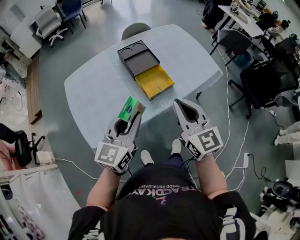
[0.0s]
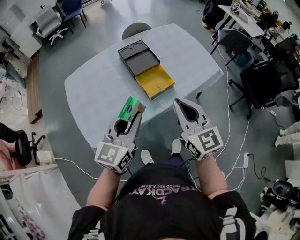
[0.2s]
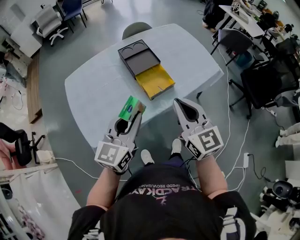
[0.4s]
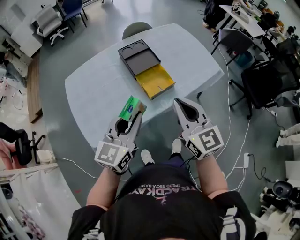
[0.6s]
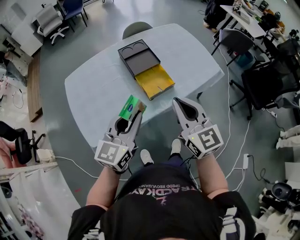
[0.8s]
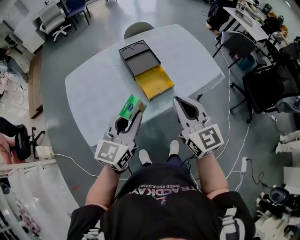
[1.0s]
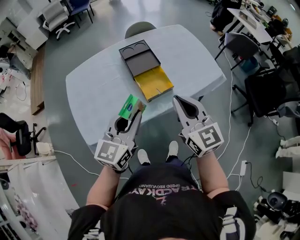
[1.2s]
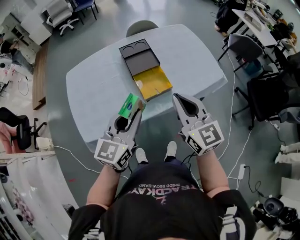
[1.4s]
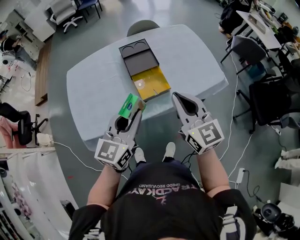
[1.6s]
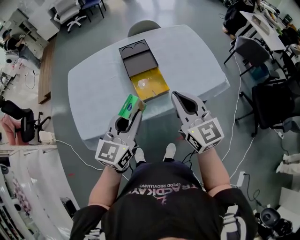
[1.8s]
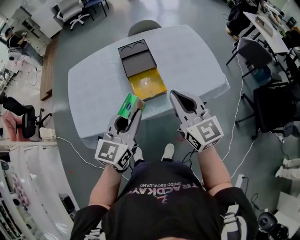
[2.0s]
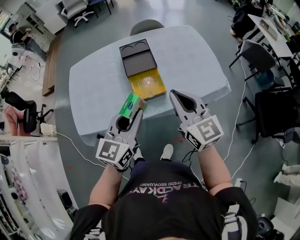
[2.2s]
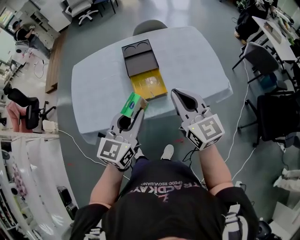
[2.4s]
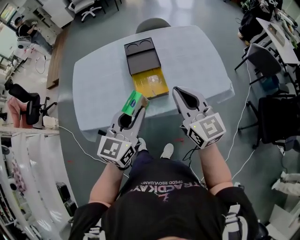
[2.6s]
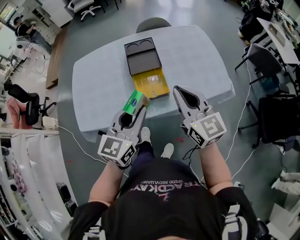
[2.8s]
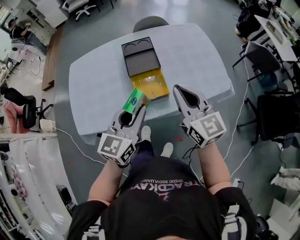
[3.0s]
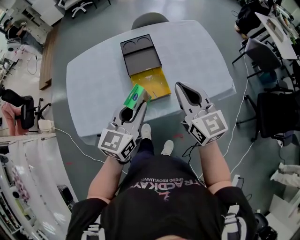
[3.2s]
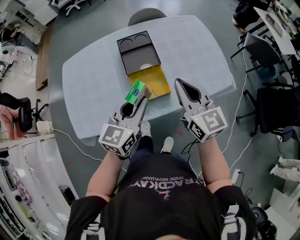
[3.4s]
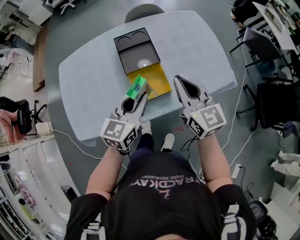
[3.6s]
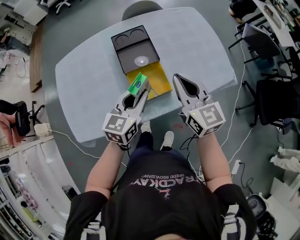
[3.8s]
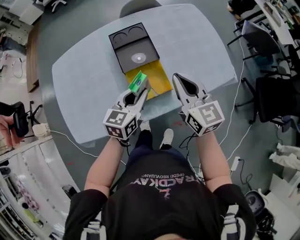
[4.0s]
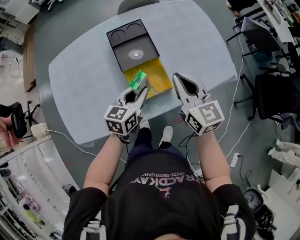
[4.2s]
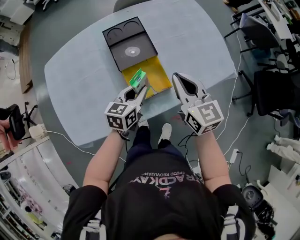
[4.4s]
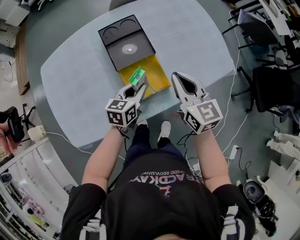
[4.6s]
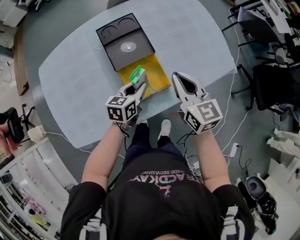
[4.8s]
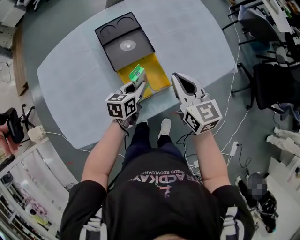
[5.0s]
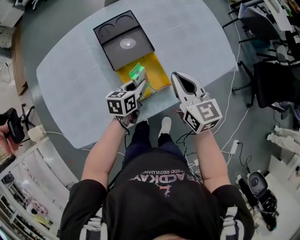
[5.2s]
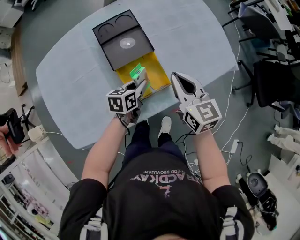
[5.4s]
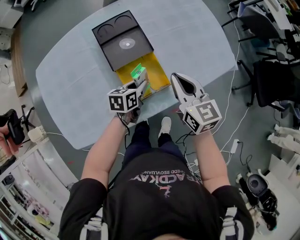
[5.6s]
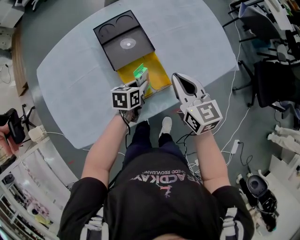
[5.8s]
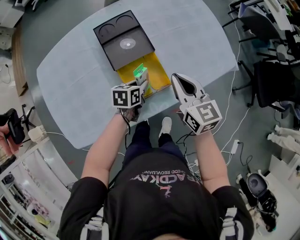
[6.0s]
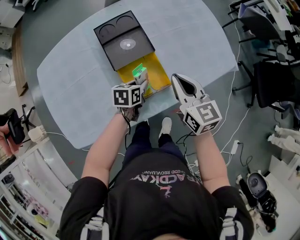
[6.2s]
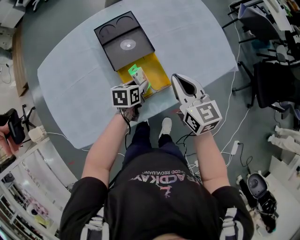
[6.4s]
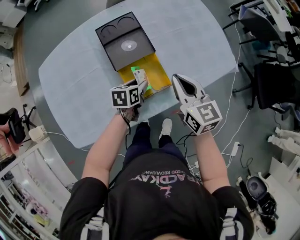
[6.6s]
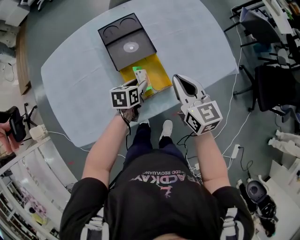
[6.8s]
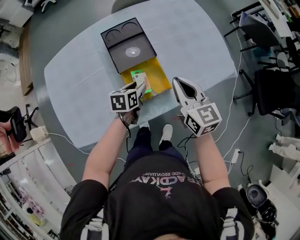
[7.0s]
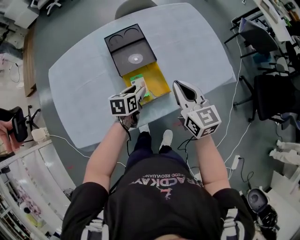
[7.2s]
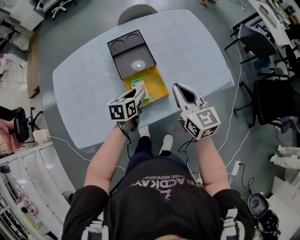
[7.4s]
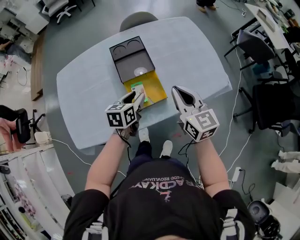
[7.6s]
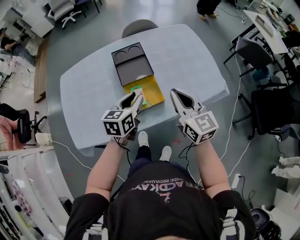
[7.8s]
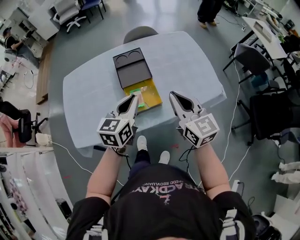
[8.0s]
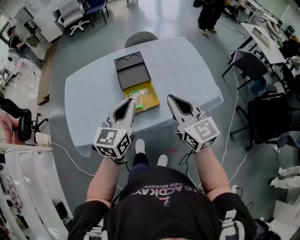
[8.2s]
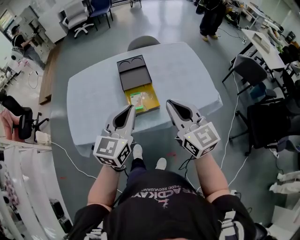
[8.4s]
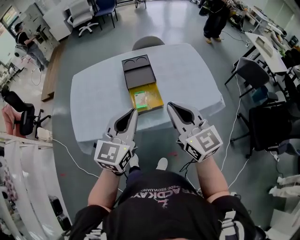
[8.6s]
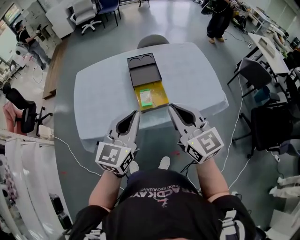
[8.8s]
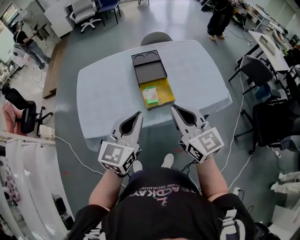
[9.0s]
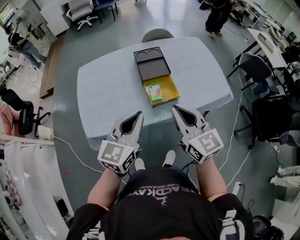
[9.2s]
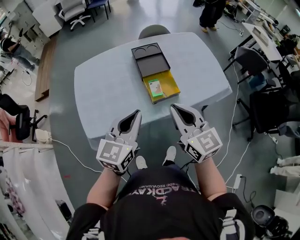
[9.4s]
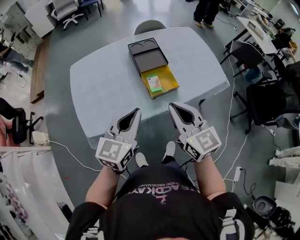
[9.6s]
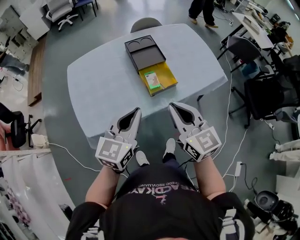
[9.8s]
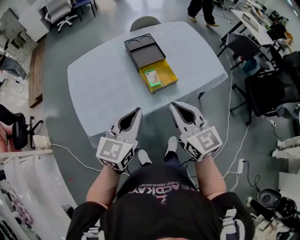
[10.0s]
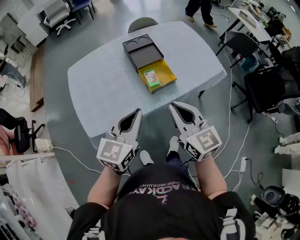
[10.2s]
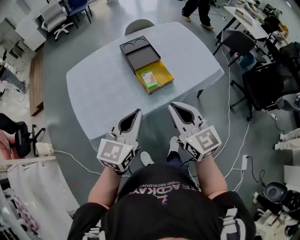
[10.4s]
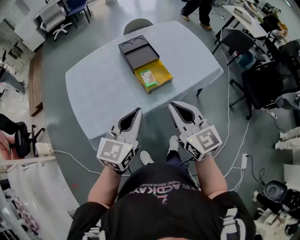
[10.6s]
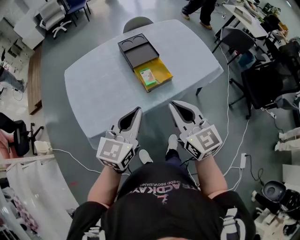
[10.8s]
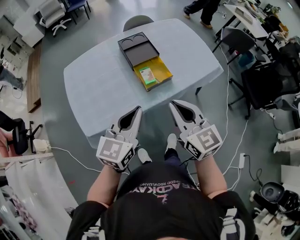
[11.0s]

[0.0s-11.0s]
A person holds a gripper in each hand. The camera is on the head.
0.0s to 1.6s: The left gripper goes about 10 cm to the right. Meanwhile the right gripper shifts some 10 cm to the right and forward.
1.6s to 3.2s: The two grippers go some 10 cm forward and to the right.
3.2s to 4.8s: The left gripper goes about 25 cm downward and forward, and rotates approximately 30 degrees. Meanwhile the right gripper is displaced downward and forward by approximately 15 cm.
4.8s to 6.2s: The left gripper is displaced downward by some 5 cm.
6.2s to 7.8s: The left gripper goes roughly 20 cm upward, and changes its angle by approximately 30 degrees. Meanwhile the right gripper goes some 10 cm upward and backward.
7.8s to 9.4s: The right gripper travels to the left and backward by roughly 25 cm. Meanwhile the left gripper moves backward, to the left and upward, approximately 25 cm, rotates about 20 degrees, and closes up.
9.4s to 11.0s: The right gripper travels backward by approximately 5 cm.

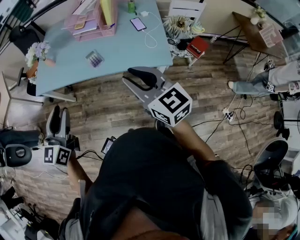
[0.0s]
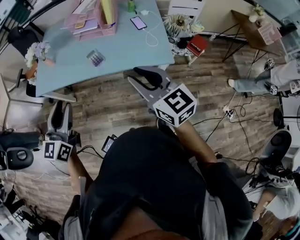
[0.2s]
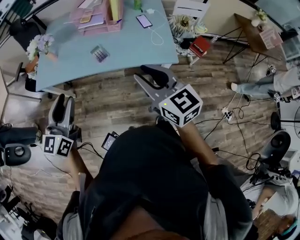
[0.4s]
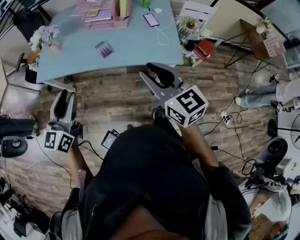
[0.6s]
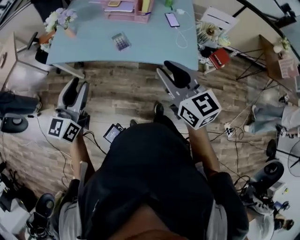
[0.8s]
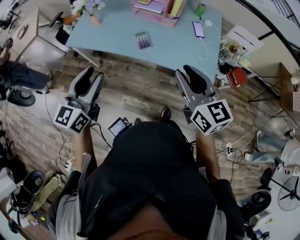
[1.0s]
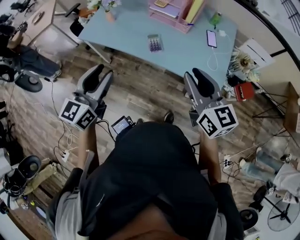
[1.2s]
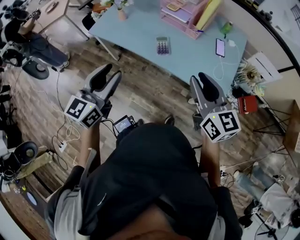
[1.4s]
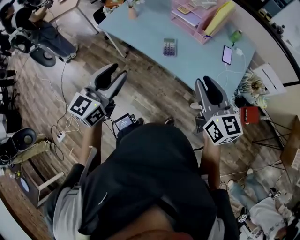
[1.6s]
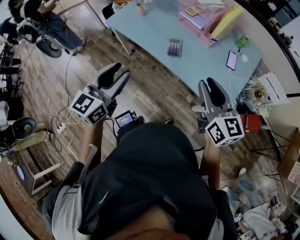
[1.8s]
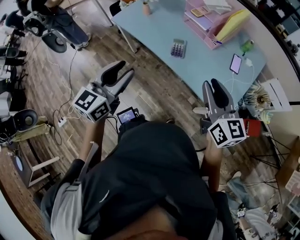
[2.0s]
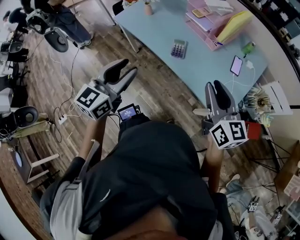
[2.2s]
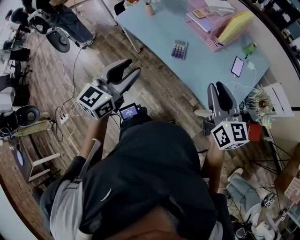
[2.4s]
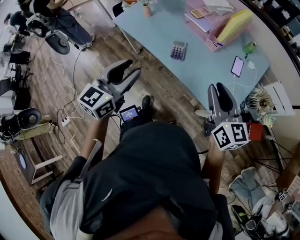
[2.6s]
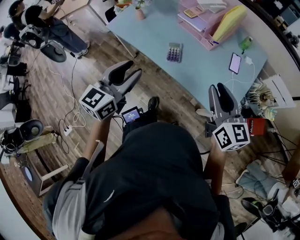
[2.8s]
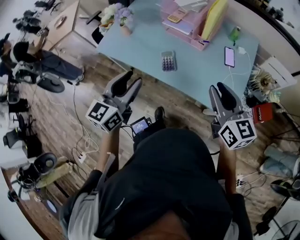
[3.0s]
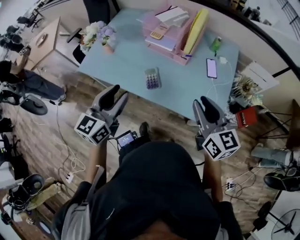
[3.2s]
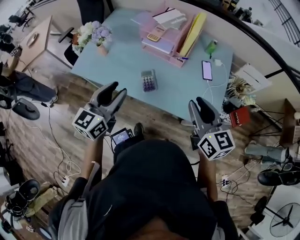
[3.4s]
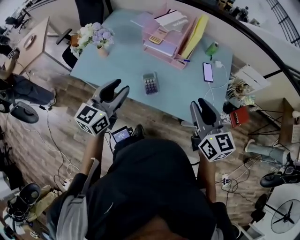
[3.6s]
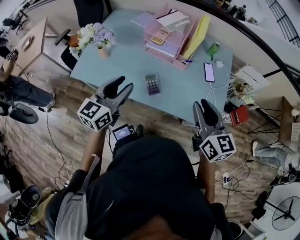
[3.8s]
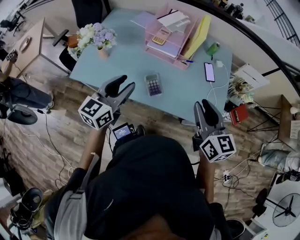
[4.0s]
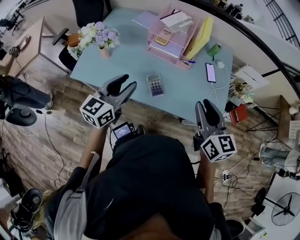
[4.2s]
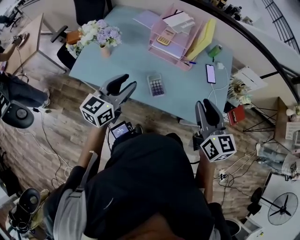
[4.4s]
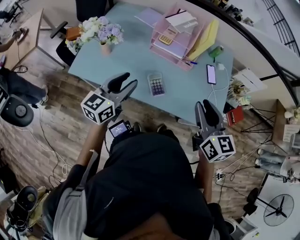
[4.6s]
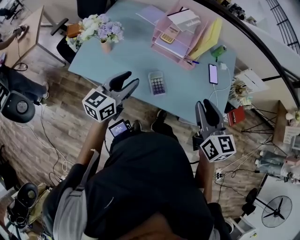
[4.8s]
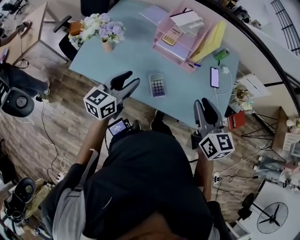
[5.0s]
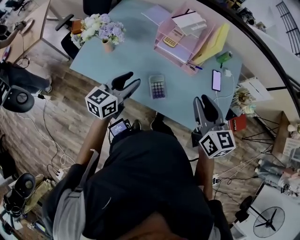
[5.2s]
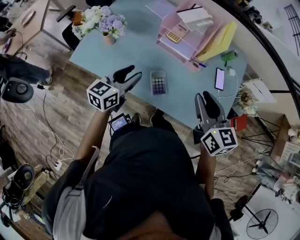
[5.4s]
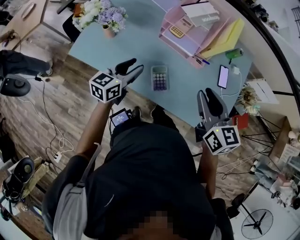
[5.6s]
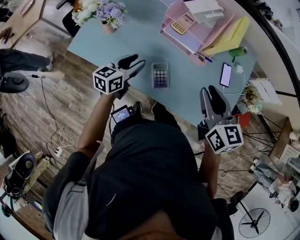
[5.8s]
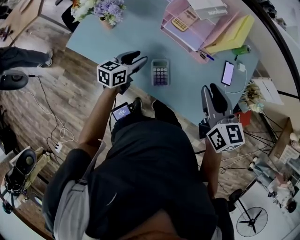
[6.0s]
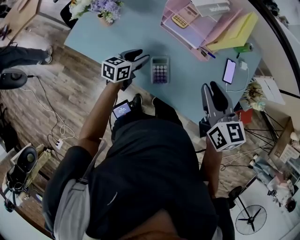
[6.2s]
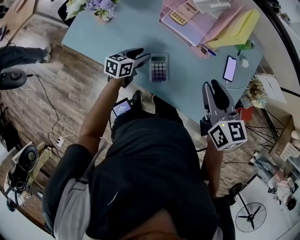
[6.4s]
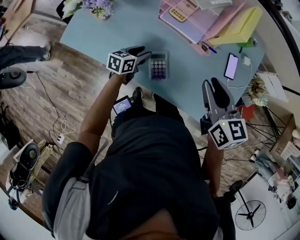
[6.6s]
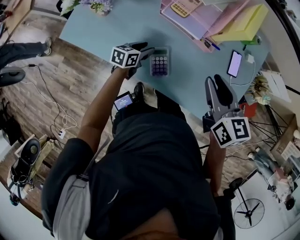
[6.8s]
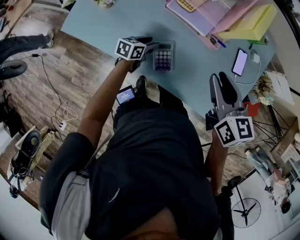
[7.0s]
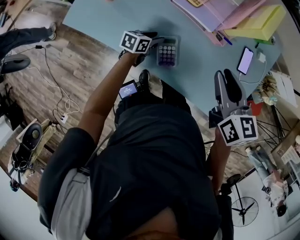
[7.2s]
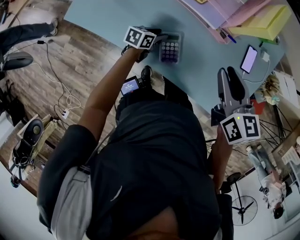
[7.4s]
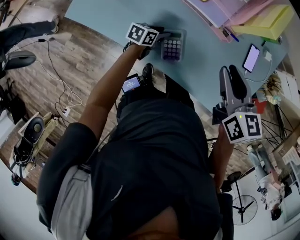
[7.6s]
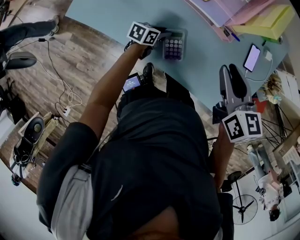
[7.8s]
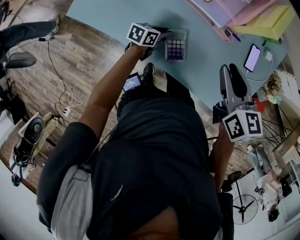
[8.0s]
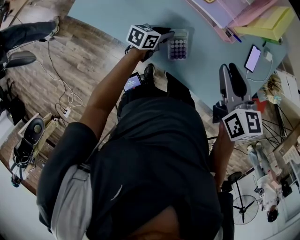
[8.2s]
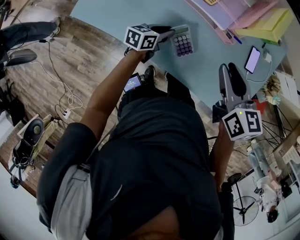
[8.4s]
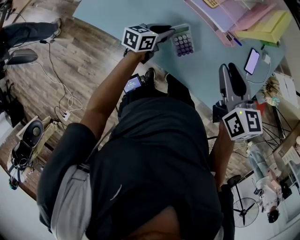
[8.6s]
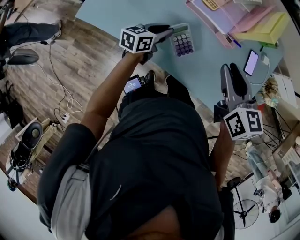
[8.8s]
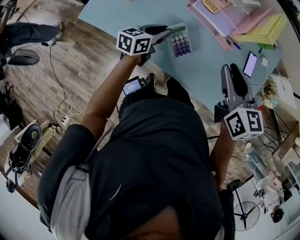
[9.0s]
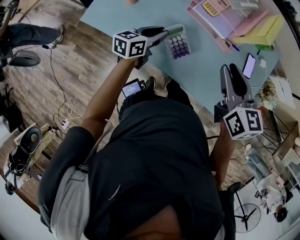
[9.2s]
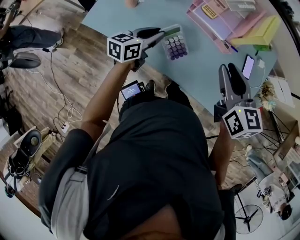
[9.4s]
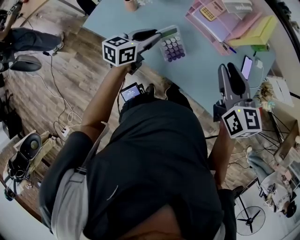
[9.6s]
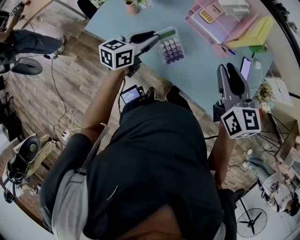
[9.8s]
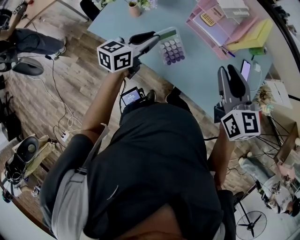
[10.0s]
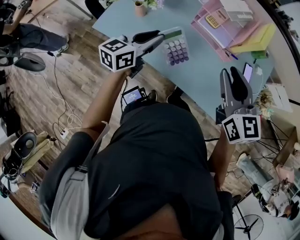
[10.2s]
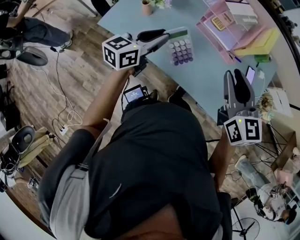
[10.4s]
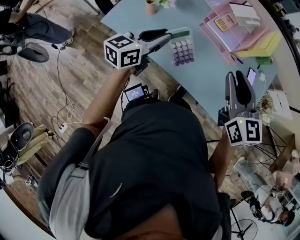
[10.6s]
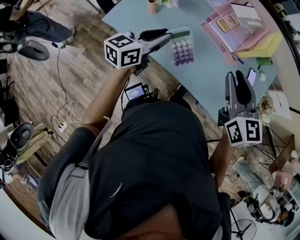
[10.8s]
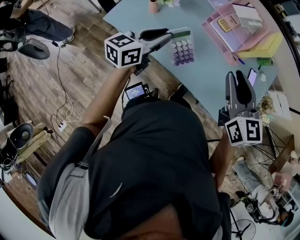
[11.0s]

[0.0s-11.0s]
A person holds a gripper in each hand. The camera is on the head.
0.0s to 1.6s: The right gripper shifts roughly 10 cm forward.
1.6s to 3.2s: The right gripper travels forward by roughly 10 cm. The left gripper shifts roughly 15 cm forward.
3.2s to 4.8s: The right gripper goes approximately 15 cm to the left and forward. The left gripper shifts about 20 cm forward, to the left and downward.
4.8s to 6.2s: The left gripper goes roughly 25 cm downward and forward, and swivels some 30 degrees. The right gripper is displaced forward and downward by some 15 cm.
6.2s to 7.8s: The right gripper changes place by some 5 cm. Meanwhile the left gripper goes about 15 cm downward, and turns by approximately 20 degrees.
7.8s to 9.4s: The right gripper travels to the left and upward by roughly 10 cm. Meanwhile the left gripper travels upward and to the left by roughly 25 cm, and changes its angle by some 30 degrees.
9.4s to 11.0s: The right gripper is displaced backward, upward and to the left by about 10 cm. Meanwhile the left gripper travels upward, backward and to the left by some 15 cm.

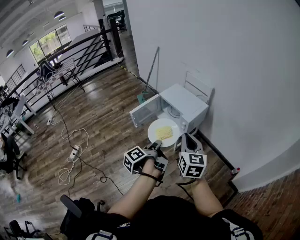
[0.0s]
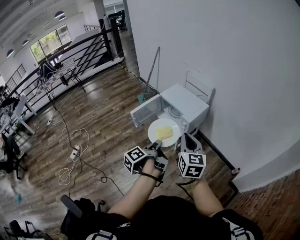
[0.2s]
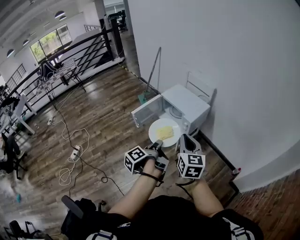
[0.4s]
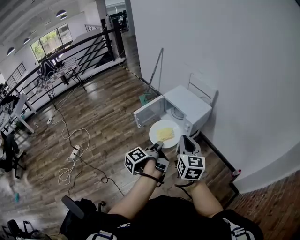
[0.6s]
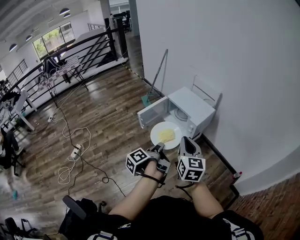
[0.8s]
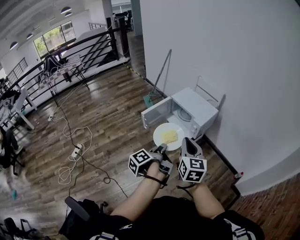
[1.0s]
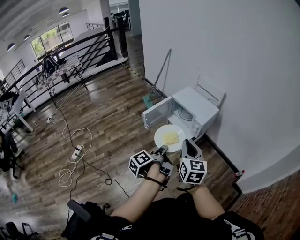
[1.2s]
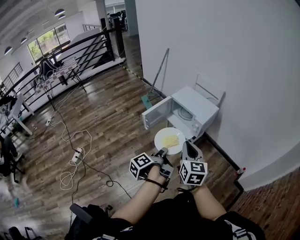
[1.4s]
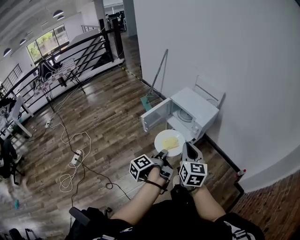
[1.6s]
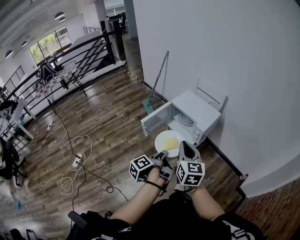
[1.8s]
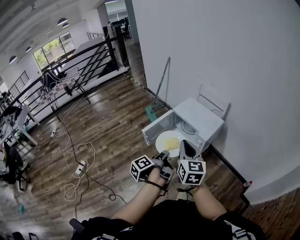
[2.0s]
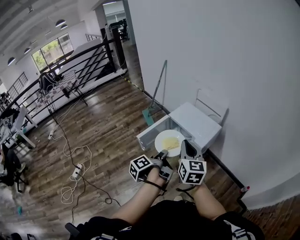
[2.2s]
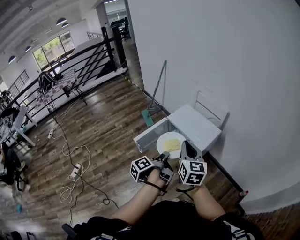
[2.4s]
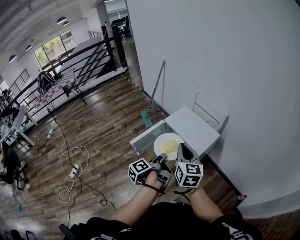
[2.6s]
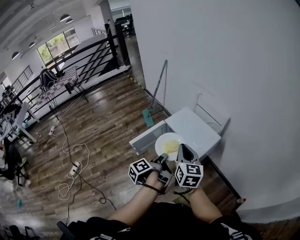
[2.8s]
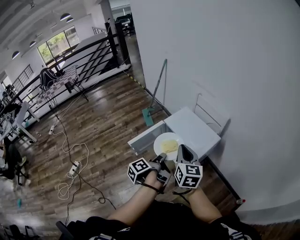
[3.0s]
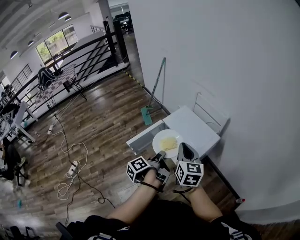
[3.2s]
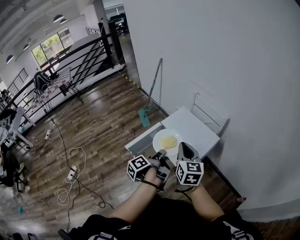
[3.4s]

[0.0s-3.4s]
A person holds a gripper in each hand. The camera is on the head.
0.0s to 1.6s: The right gripper changes place by some 15 cm.
1.6s to 3.4s: The right gripper shifts by some 35 cm.
